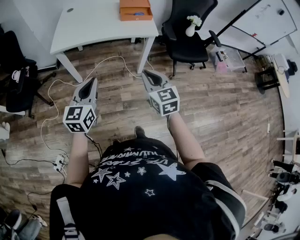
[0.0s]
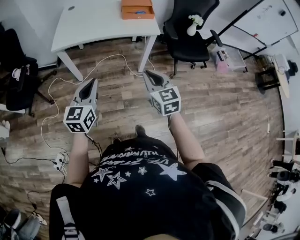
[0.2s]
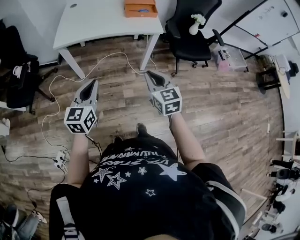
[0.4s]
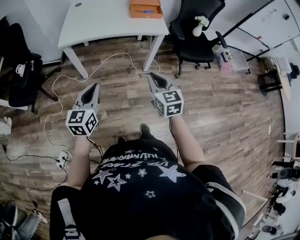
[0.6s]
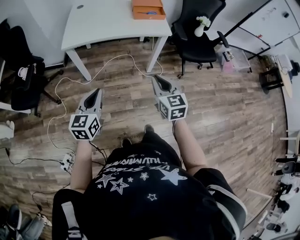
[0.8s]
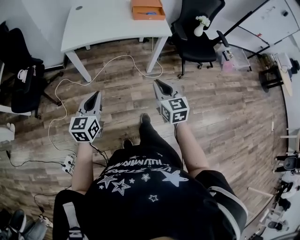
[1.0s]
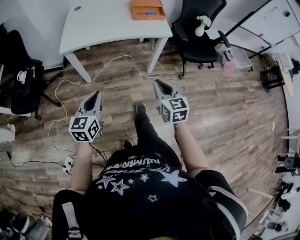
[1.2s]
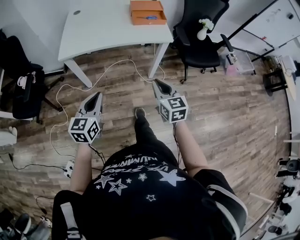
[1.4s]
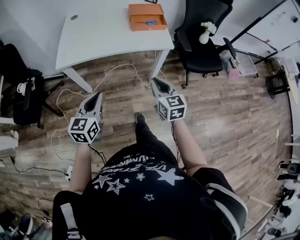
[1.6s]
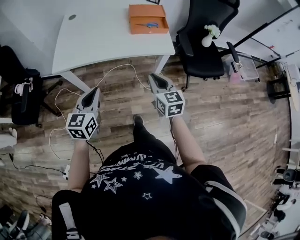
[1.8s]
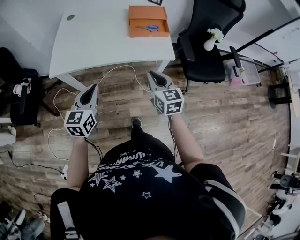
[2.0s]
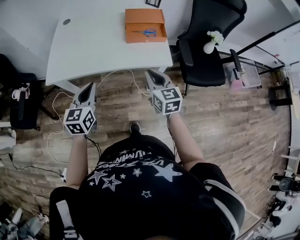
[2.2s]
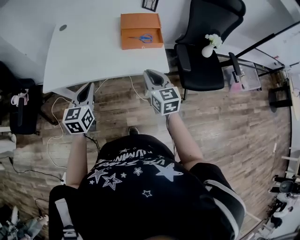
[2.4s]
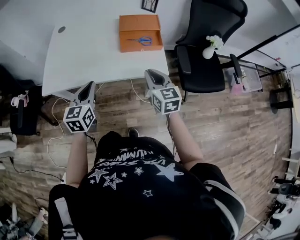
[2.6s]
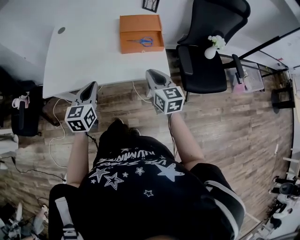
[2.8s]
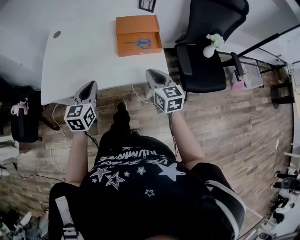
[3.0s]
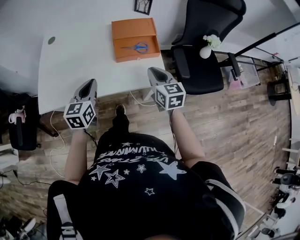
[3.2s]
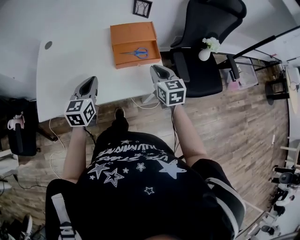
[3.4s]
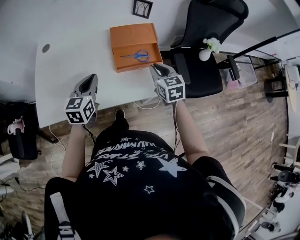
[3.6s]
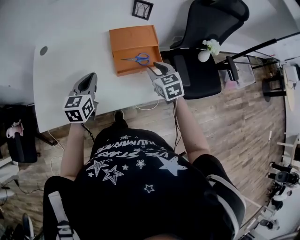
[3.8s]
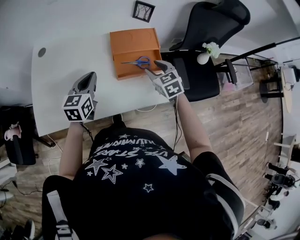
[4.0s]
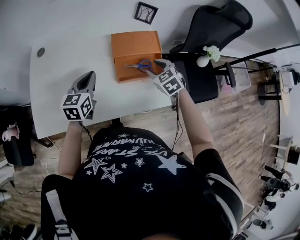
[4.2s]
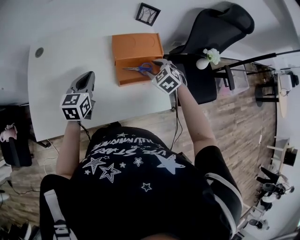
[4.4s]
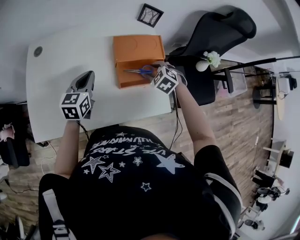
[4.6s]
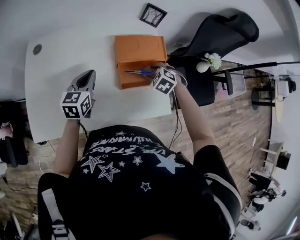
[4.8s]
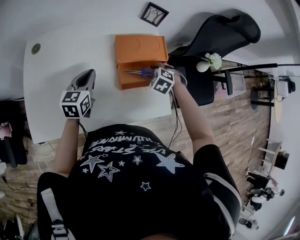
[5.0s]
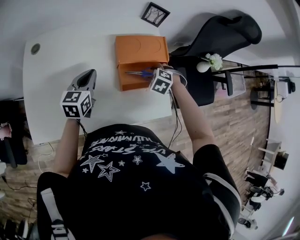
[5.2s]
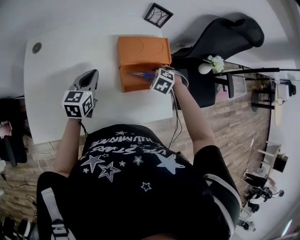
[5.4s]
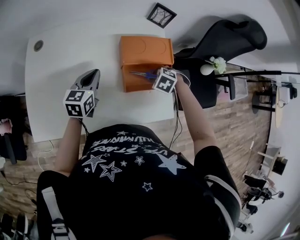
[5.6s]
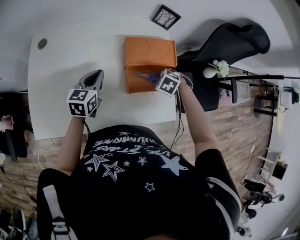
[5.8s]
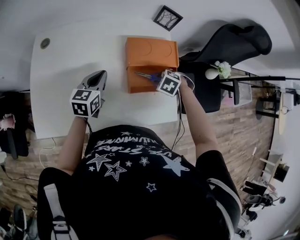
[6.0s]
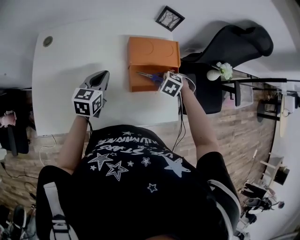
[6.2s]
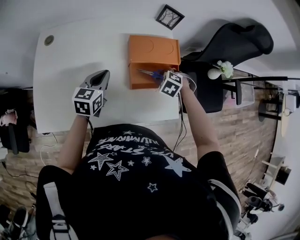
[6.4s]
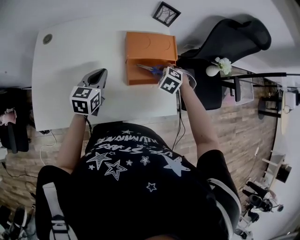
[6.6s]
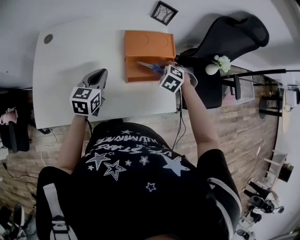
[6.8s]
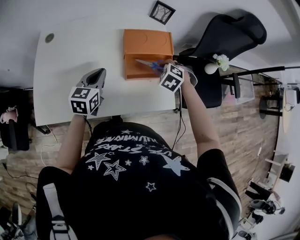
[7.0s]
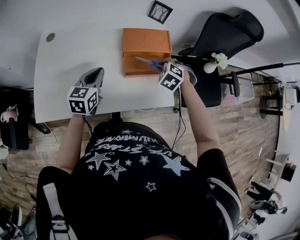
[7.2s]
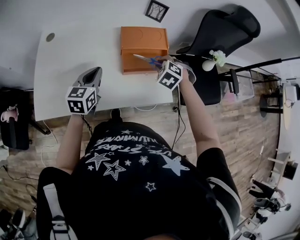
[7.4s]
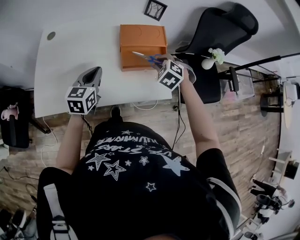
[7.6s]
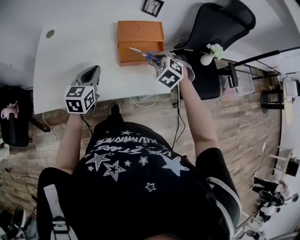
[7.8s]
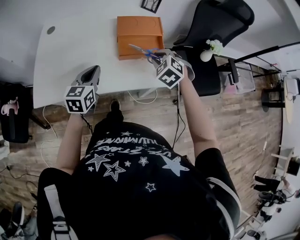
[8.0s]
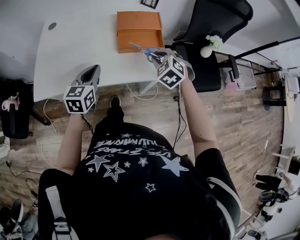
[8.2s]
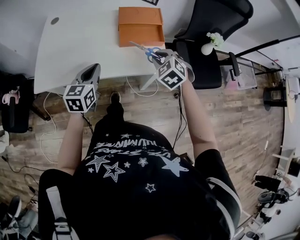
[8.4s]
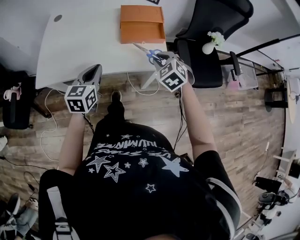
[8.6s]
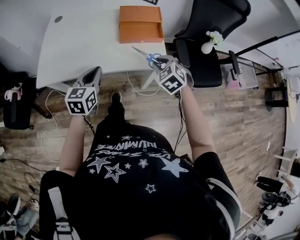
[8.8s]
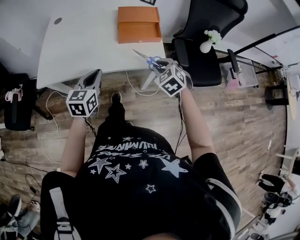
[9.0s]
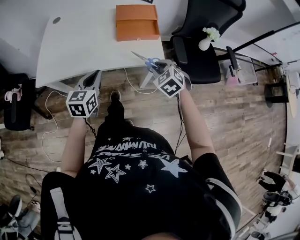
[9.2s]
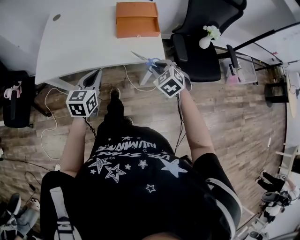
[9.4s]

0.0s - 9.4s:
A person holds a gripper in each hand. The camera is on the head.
0.0s - 1.6s: The grippers both shift forward by about 15 cm.
1.6s - 3.2s: Both grippers are carried forward, roughly 50 cm.
3.2s - 4.8s: The right gripper shifts roughly 30 cm forward and downward, tilts its fingers roughly 50 degrees downward, and opens, while the left gripper shifts some 30 cm forward.
4.8s - 6.2s: The grippers move only a little.
6.2s - 7.8s: The right gripper shifts by about 20 cm, and swivels some 30 degrees, while the left gripper shifts by roughly 20 cm.
7.8s - 9.4s: The two grippers go roughly 25 cm backward.

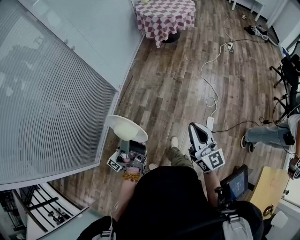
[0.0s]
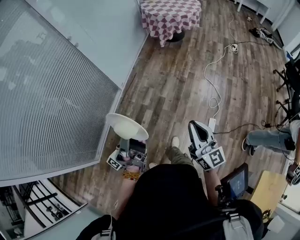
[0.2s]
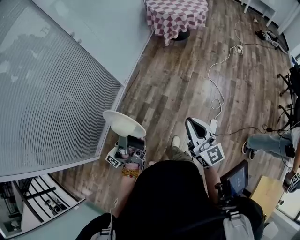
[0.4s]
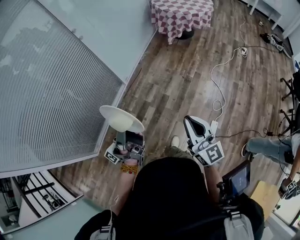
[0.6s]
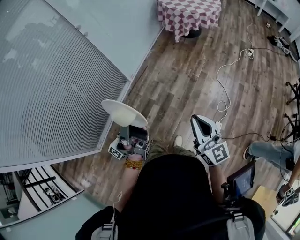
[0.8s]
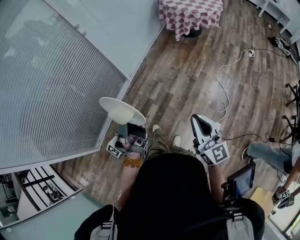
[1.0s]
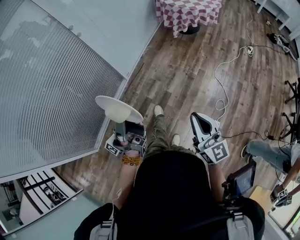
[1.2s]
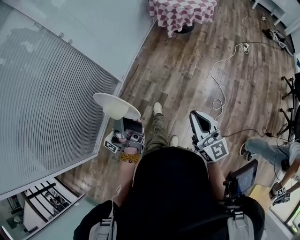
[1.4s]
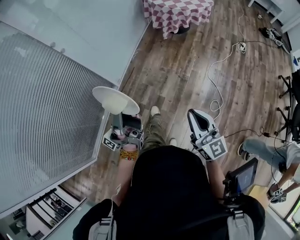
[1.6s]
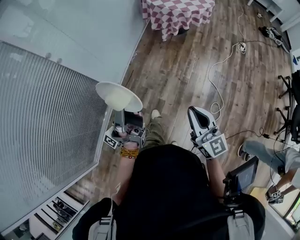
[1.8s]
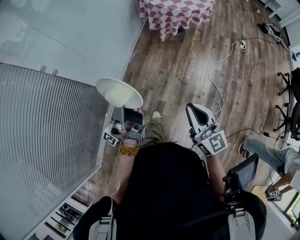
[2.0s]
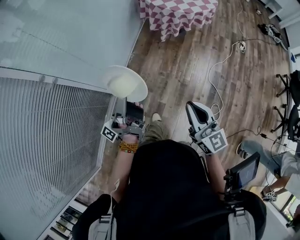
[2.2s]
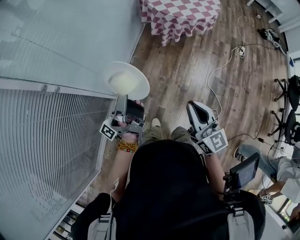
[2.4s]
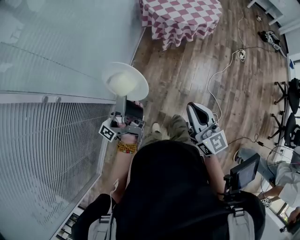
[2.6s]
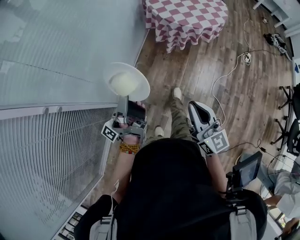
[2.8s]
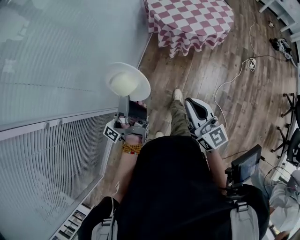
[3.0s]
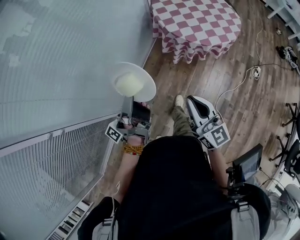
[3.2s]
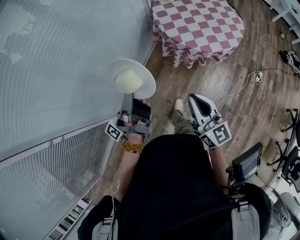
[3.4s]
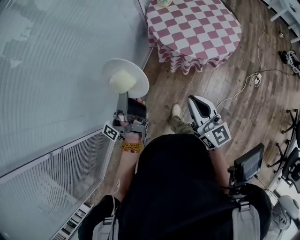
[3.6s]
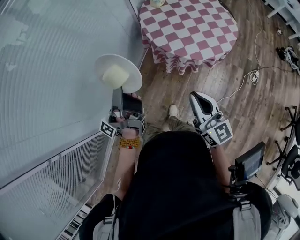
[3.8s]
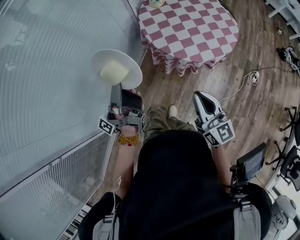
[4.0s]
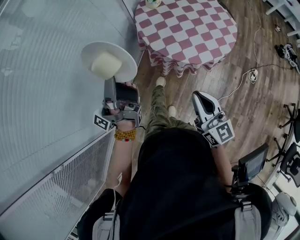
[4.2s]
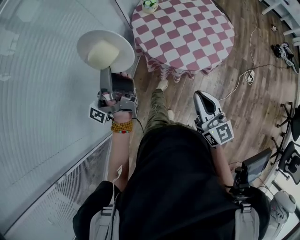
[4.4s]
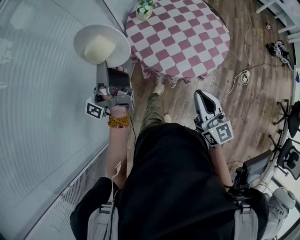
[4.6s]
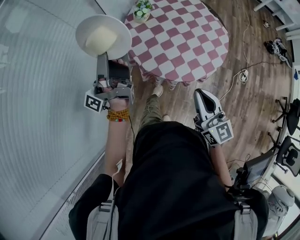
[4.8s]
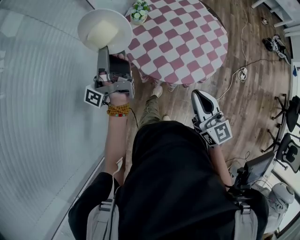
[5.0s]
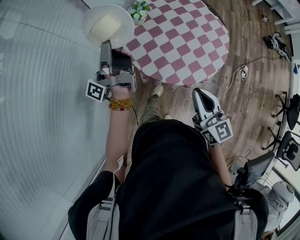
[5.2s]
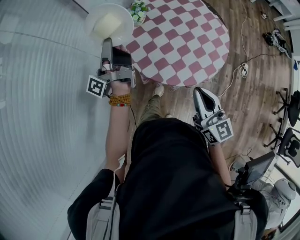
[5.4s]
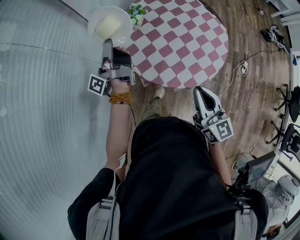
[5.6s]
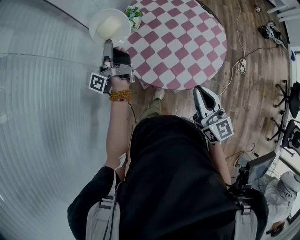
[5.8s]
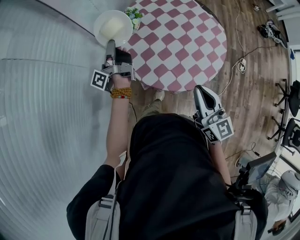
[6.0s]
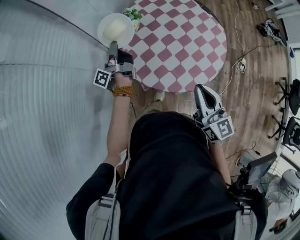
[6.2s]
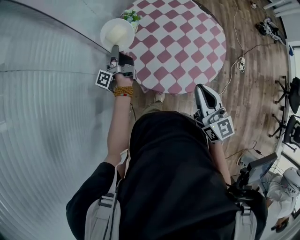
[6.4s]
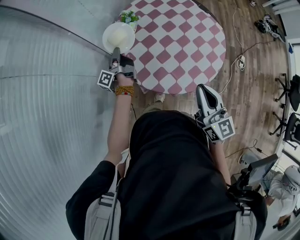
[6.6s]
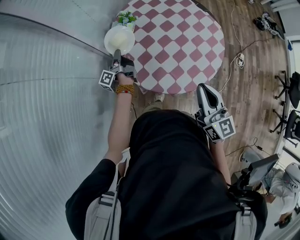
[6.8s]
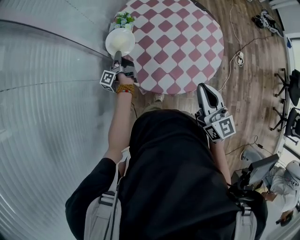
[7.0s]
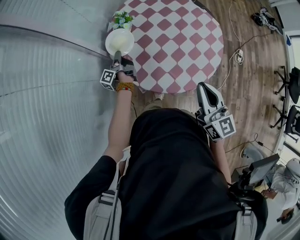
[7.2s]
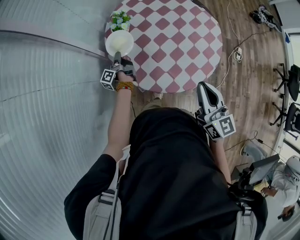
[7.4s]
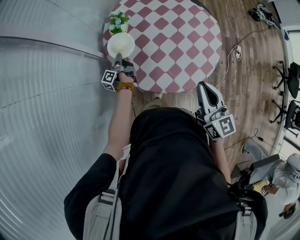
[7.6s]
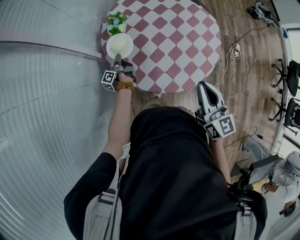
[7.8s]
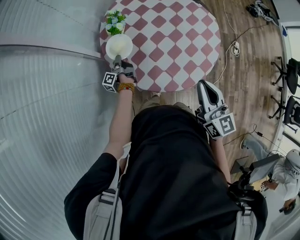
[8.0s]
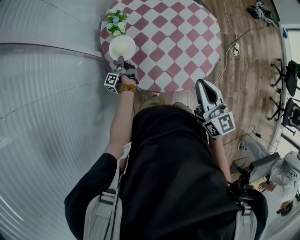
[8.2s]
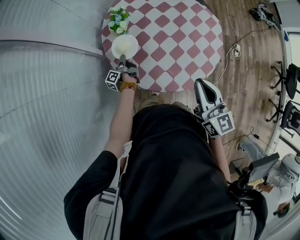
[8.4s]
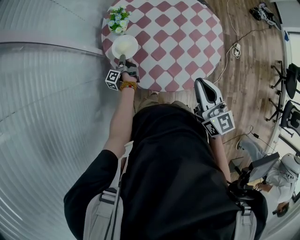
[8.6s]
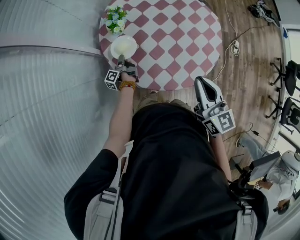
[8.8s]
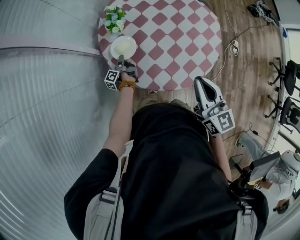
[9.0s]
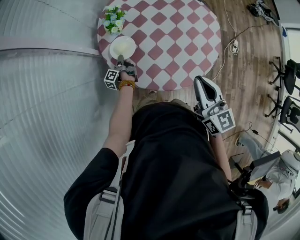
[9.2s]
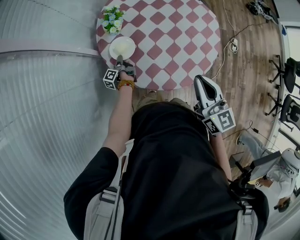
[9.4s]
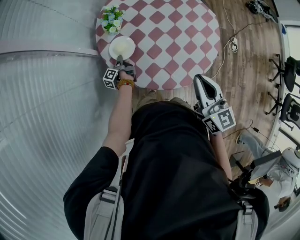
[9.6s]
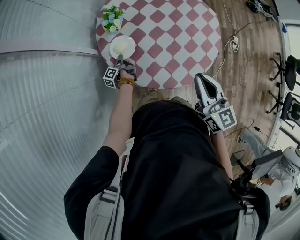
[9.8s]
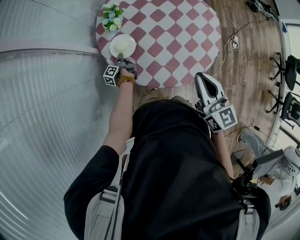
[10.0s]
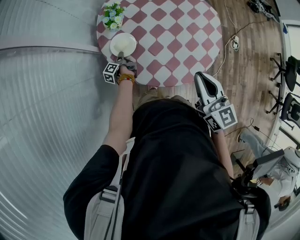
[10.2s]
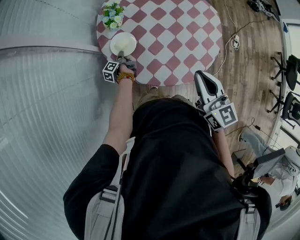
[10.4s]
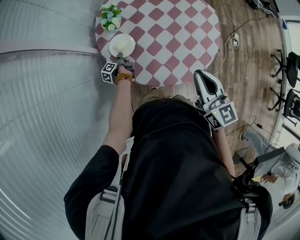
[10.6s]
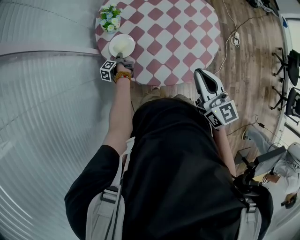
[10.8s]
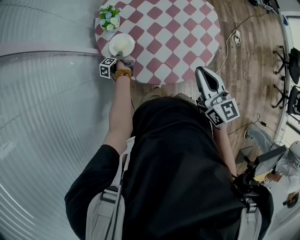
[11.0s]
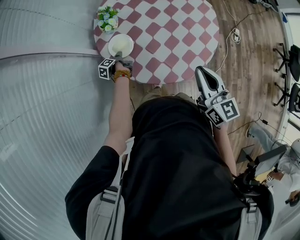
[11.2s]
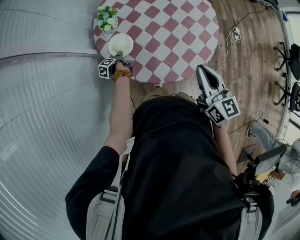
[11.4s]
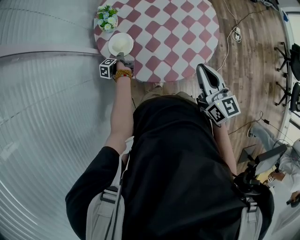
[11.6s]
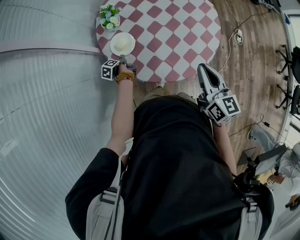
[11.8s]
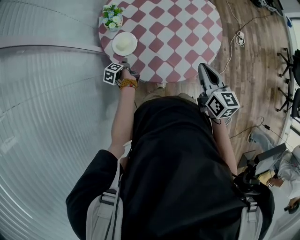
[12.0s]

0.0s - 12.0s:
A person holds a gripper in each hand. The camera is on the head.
0.0s - 1.6s: The right gripper moves about 25 cm.
1.6s - 3.0s: The right gripper moves roughly 50 cm.
3.0s - 4.4s: The right gripper ends up about 35 cm from where it was.
4.4s - 6.0s: The right gripper changes place by about 20 cm.
6.0s - 7.6s: The right gripper moves approximately 5 cm.
10.4s - 12.0s: The right gripper travels downward by about 5 cm, and changes its angle by roughly 20 degrees.

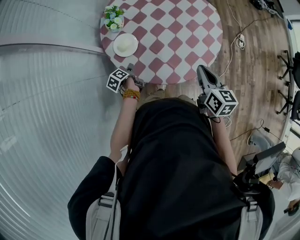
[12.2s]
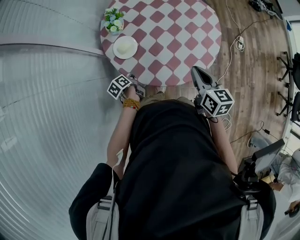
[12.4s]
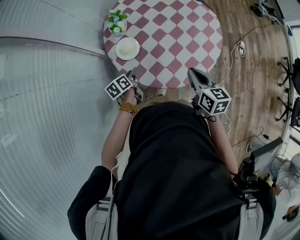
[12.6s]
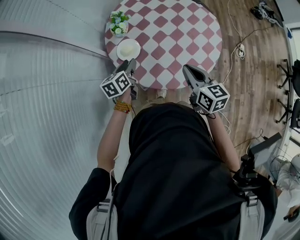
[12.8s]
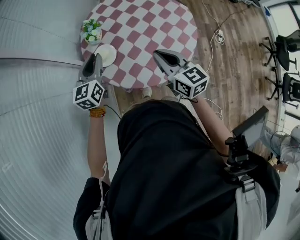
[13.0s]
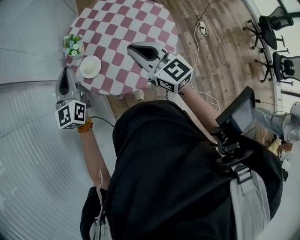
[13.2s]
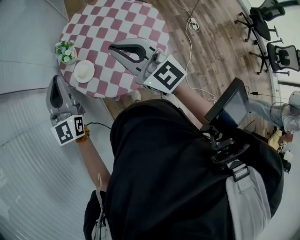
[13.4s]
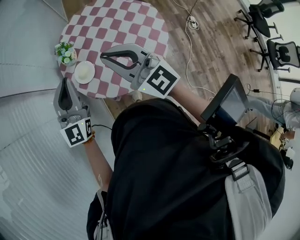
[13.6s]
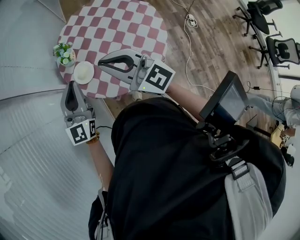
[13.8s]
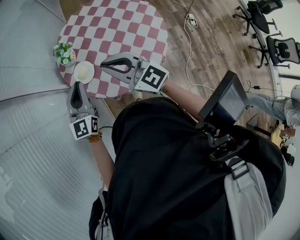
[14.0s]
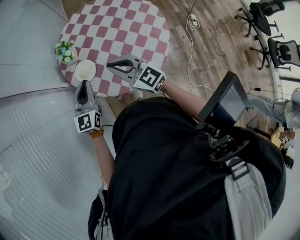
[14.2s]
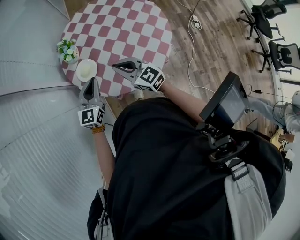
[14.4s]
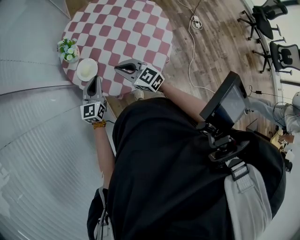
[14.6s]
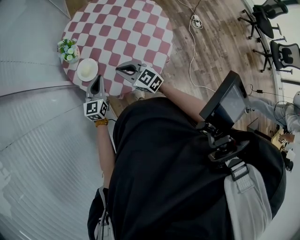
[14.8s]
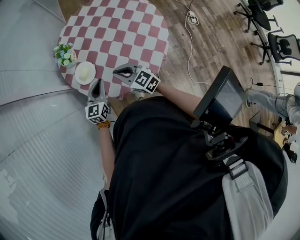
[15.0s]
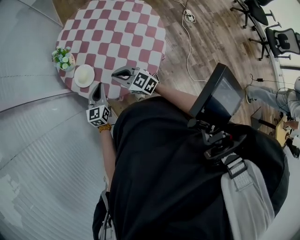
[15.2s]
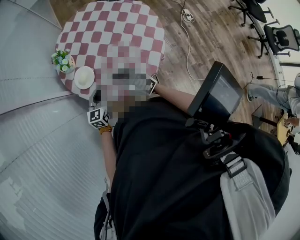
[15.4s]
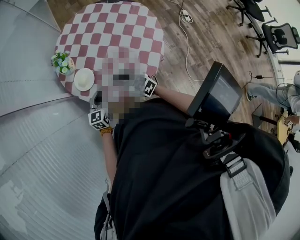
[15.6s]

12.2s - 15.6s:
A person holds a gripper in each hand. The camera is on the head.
12.2s - 13.8s: The right gripper is displaced upward by about 20 cm, and points its fingers roughly 40 degrees further upward.
13.8s - 15.6s: The right gripper goes approximately 25 cm downward, and rotates about 30 degrees.
